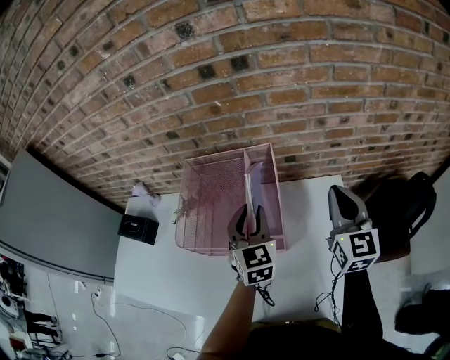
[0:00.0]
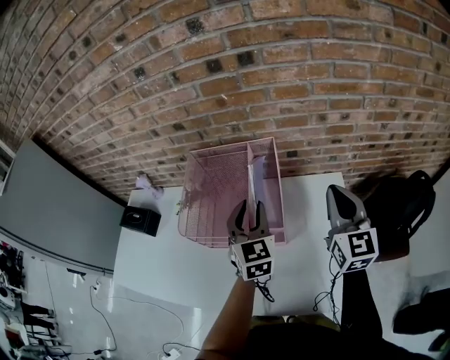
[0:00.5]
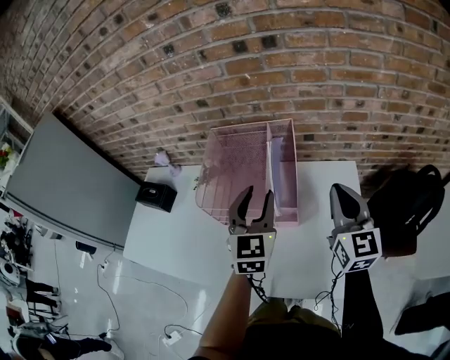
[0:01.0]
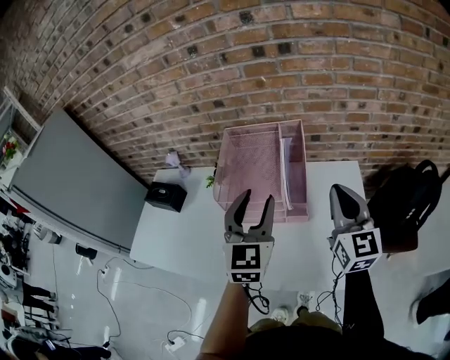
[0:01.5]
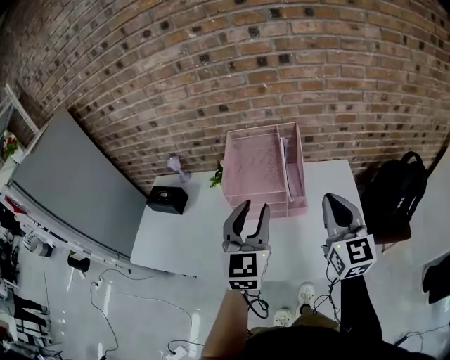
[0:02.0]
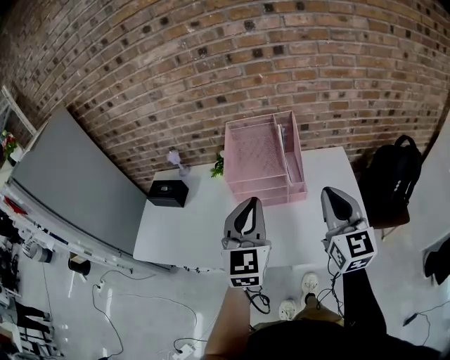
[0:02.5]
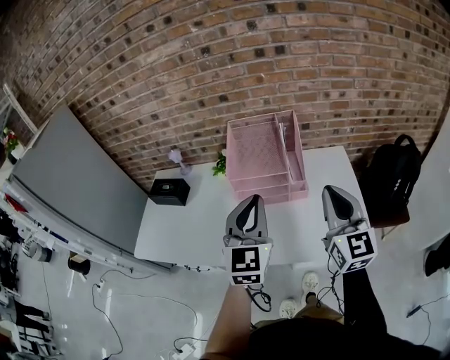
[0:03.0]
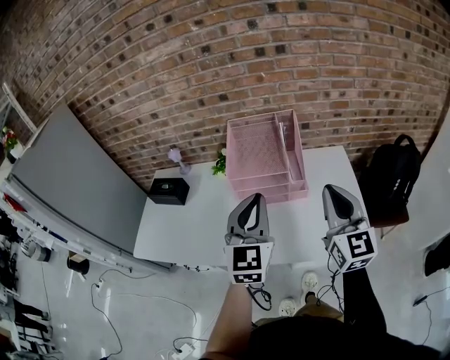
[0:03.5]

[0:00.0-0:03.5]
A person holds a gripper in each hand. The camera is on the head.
0:00.0 to 0:02.0: The right gripper shifts approximately 25 cm backward and to the left, while the left gripper travels backward, to the left and upward by roughly 30 cm.
0:02.0 to 0:03.5: The grippers both shift backward by roughly 5 cm. The left gripper closes.

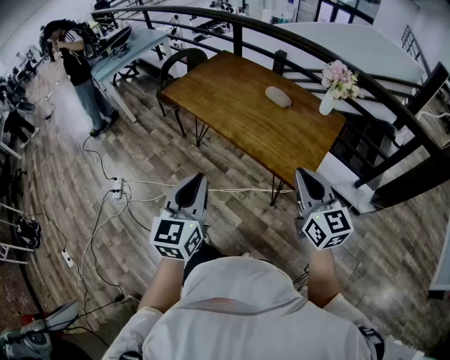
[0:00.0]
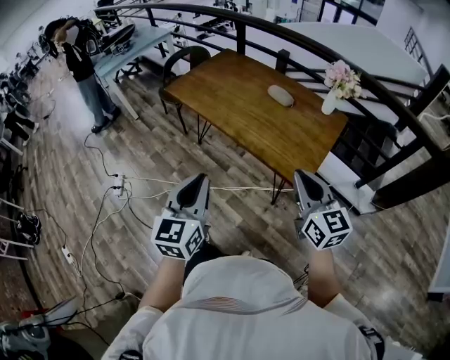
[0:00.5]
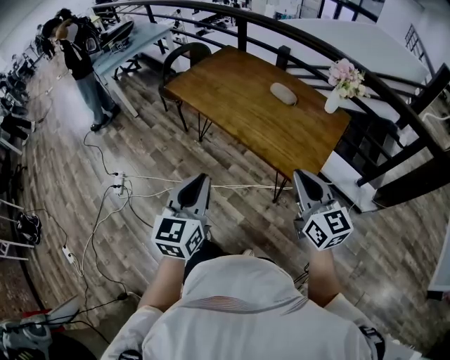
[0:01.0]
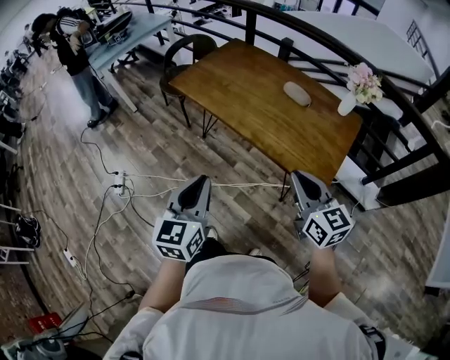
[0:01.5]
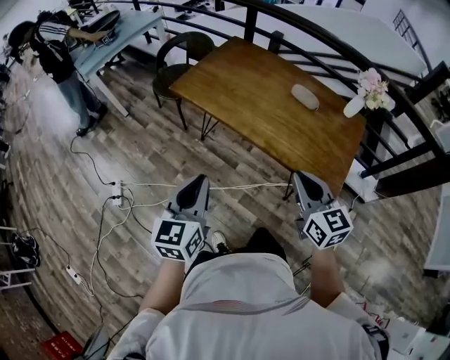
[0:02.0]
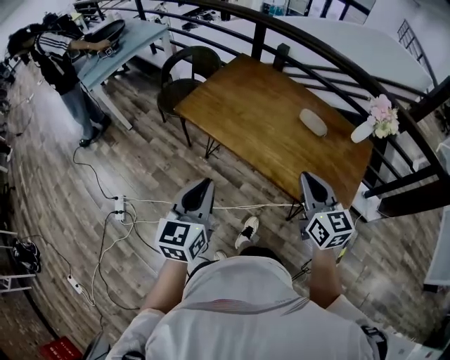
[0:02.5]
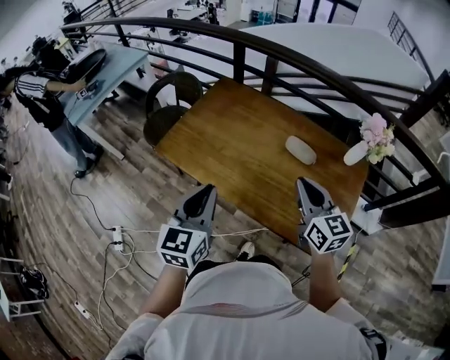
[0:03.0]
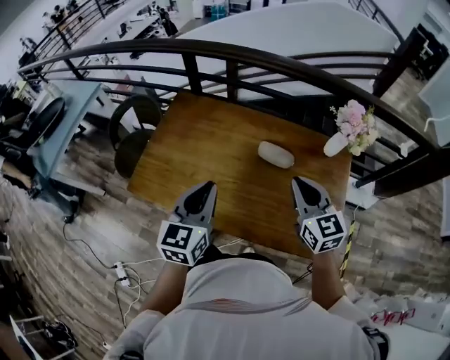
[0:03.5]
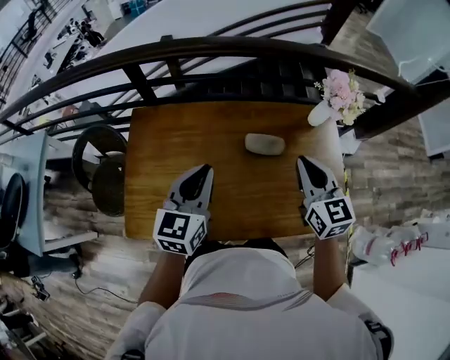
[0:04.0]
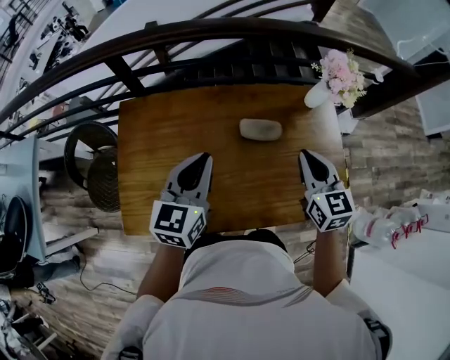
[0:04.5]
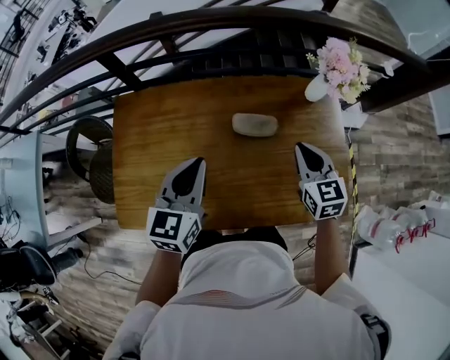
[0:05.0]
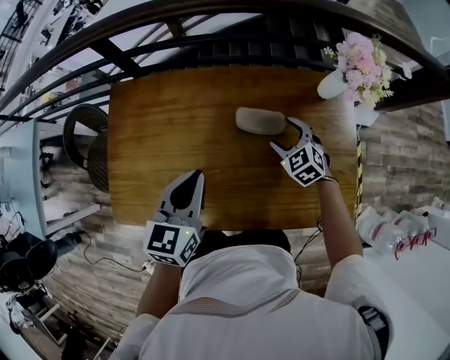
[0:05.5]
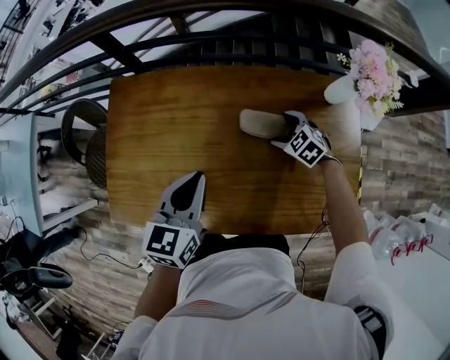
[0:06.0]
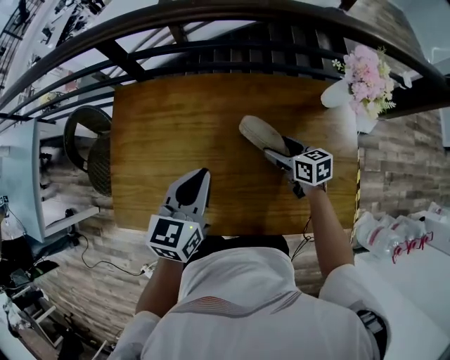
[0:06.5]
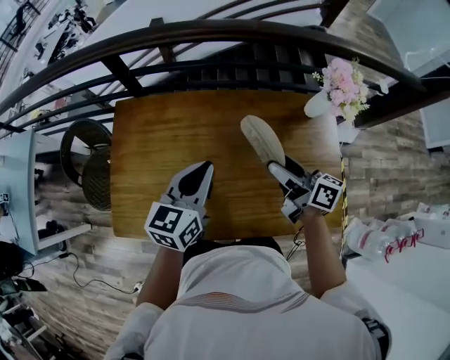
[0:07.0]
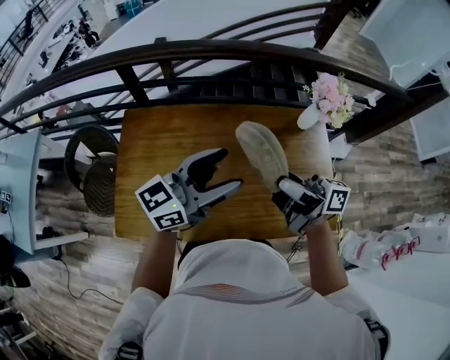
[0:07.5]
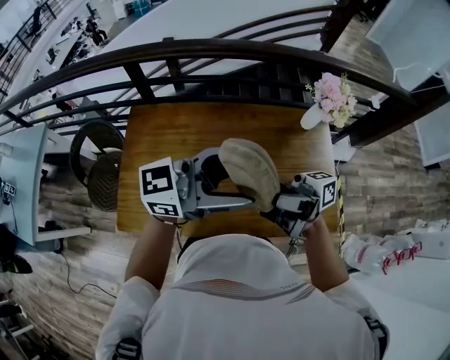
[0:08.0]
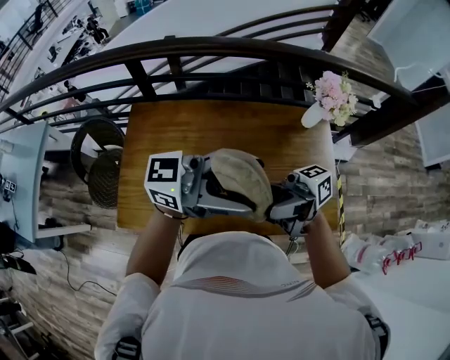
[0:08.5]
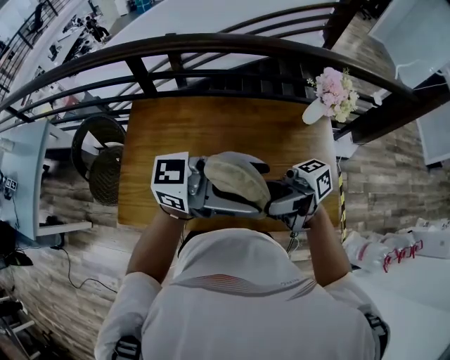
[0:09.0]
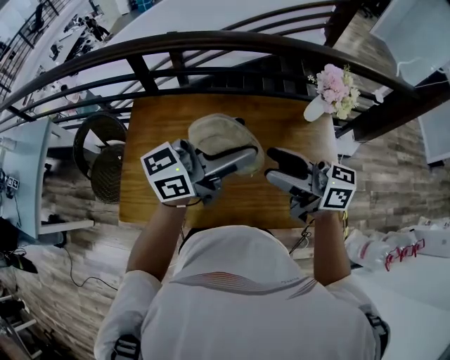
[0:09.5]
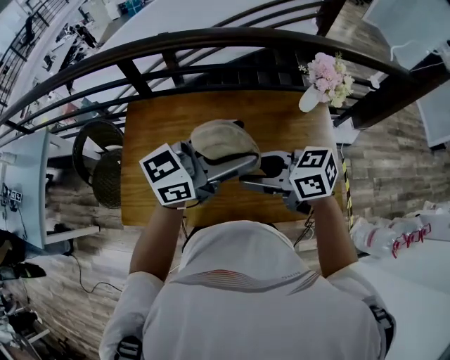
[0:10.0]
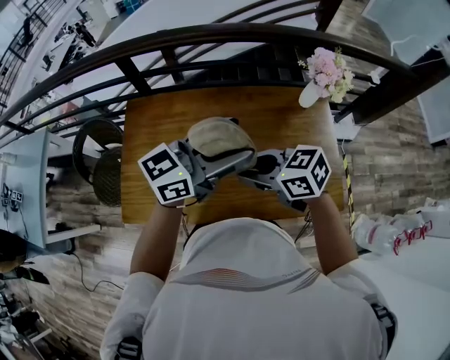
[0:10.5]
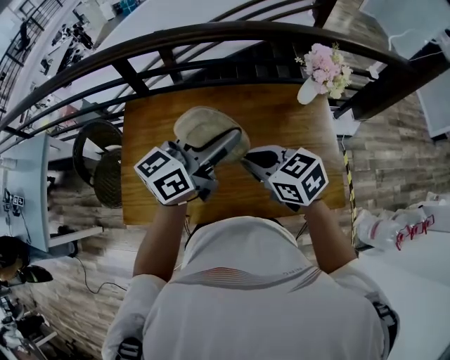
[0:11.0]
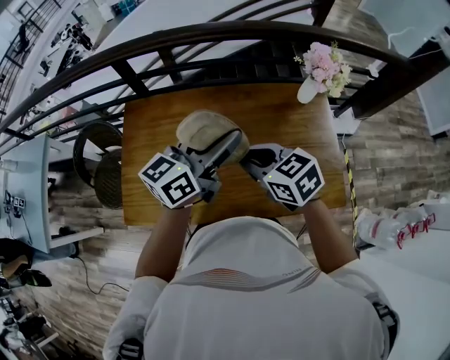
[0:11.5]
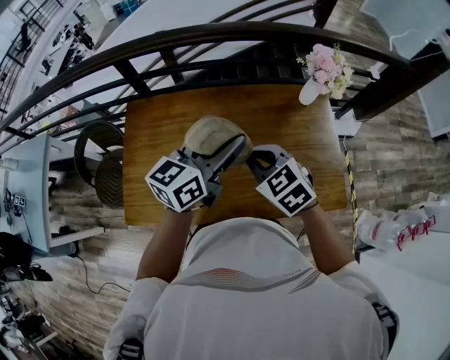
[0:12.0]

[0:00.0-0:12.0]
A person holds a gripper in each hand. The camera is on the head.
0:00.0 to 0:02.0: The grippers both shift to the left and forward by roughly 20 cm.
0:02.0 to 0:04.0: The two grippers travel together, some 50 cm. The left gripper swivels some 40 degrees; the right gripper changes its angle by roughly 40 degrees.
0:04.0 to 0:06.0: The left gripper goes some 10 cm downward. Meanwhile the right gripper travels downward by some 30 cm, tips its fingers downward by roughly 40 degrees, and opens its fingers.
0:06.0 to 0:08.0: The right gripper heads upward, covering about 40 cm, and points its fingers roughly 90 degrees further upward. The left gripper moves upward, approximately 20 cm, tilts its fingers some 40 degrees upward, and opens its fingers.
0:08.0 to 0:10.0: The left gripper changes place by some 5 cm. Meanwhile the right gripper travels downward by approximately 10 cm, and points its fingers about 50 degrees further downward.
0:10.0 to 0:12.0: The right gripper ends up approximately 5 cm from where it was, rotates some 40 degrees, and closes. Meanwhile the left gripper goes roughly 5 cm downward, and changes its angle by some 20 degrees.

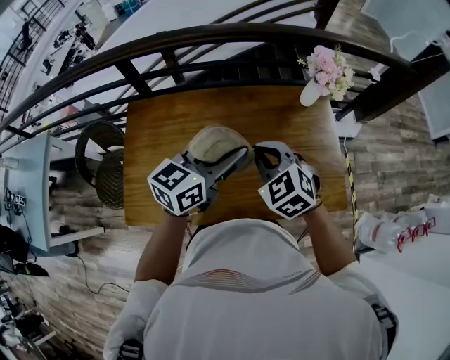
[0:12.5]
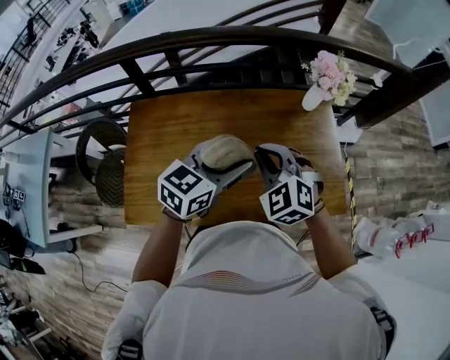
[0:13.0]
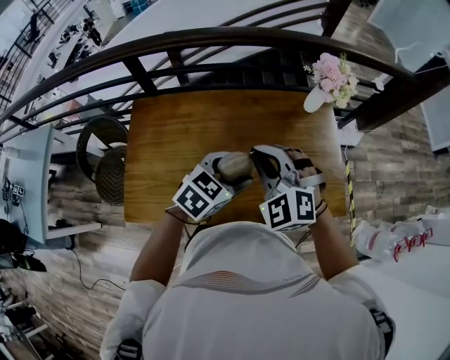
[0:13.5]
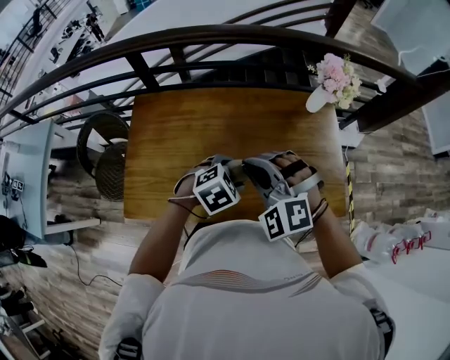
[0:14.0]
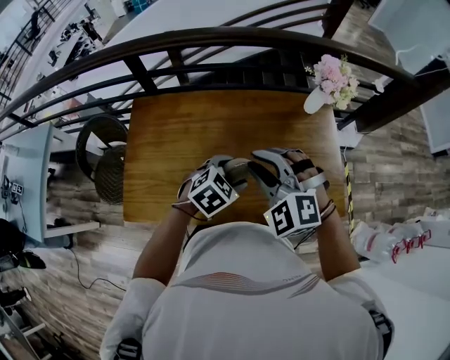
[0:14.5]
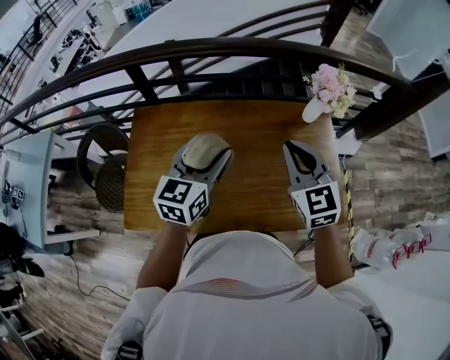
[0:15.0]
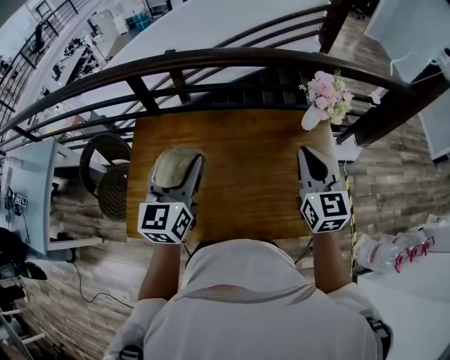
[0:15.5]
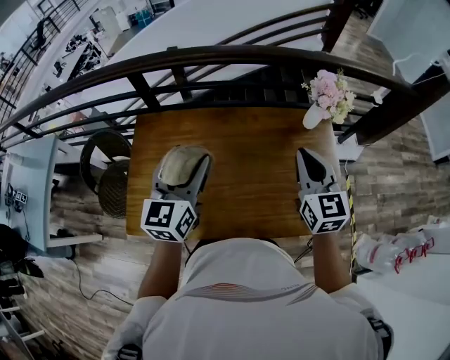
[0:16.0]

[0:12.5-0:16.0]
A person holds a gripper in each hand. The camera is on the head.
0:12.5 to 0:14.5: The left gripper shifts roughly 15 cm downward, and points its fingers some 40 degrees further downward. The right gripper shifts by about 5 cm, and swivels approximately 30 degrees.
0:14.5 to 0:16.0: The right gripper shifts roughly 15 cm to the right and forward, and rotates around the line of its fingers by roughly 60 degrees, clockwise from behind; the left gripper moves upward and to the left, about 20 cm, and tips its fingers upward by approximately 40 degrees.

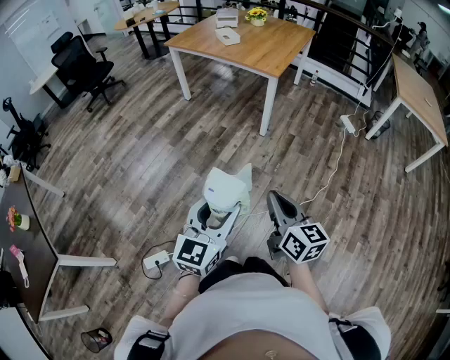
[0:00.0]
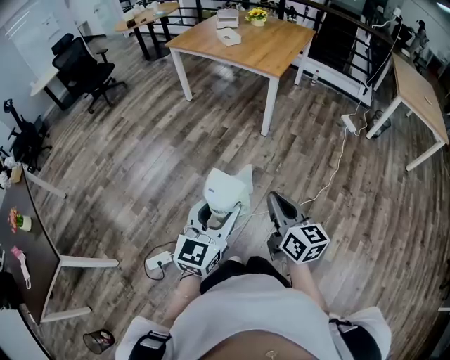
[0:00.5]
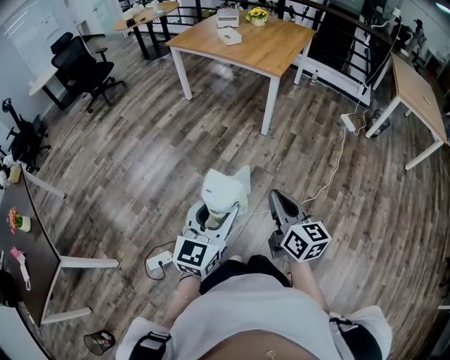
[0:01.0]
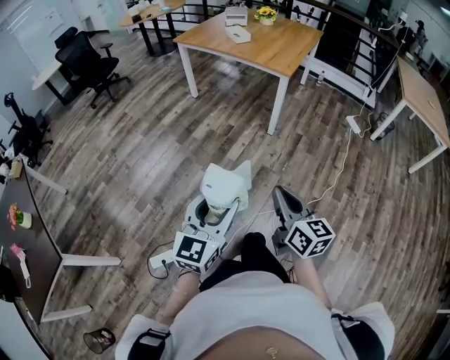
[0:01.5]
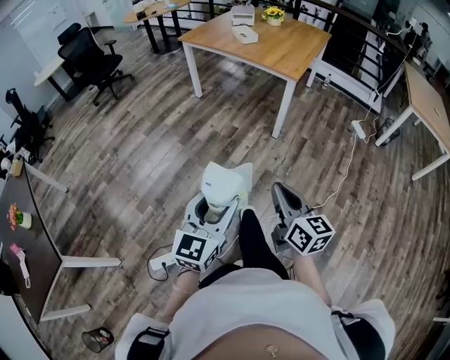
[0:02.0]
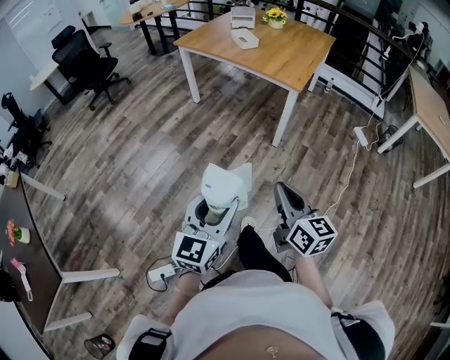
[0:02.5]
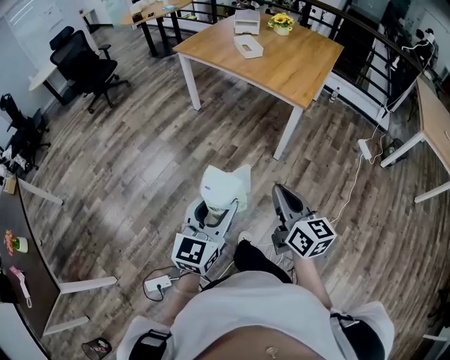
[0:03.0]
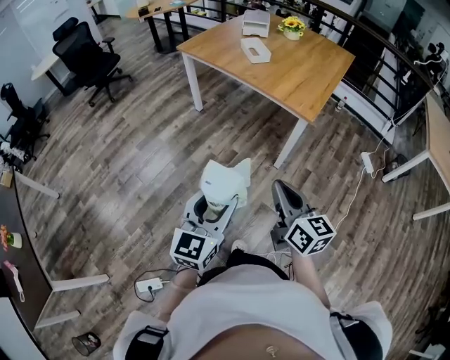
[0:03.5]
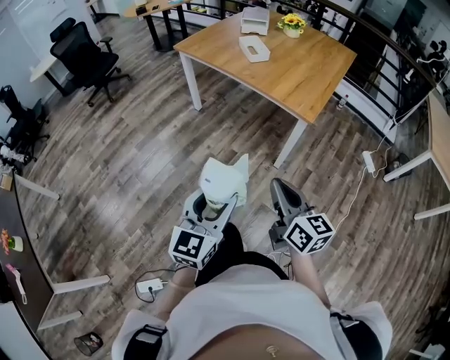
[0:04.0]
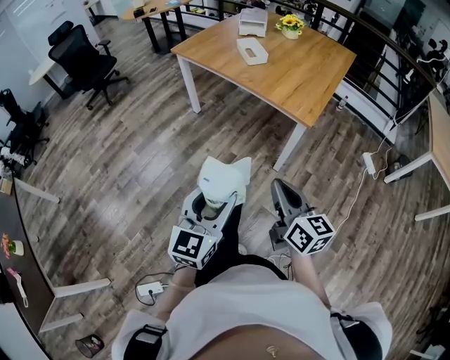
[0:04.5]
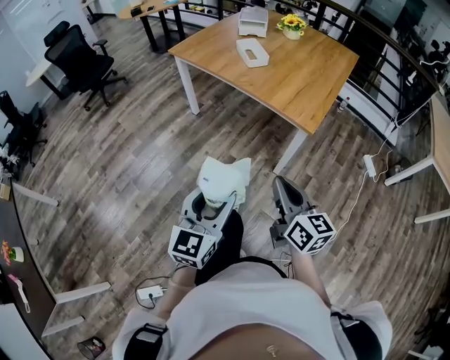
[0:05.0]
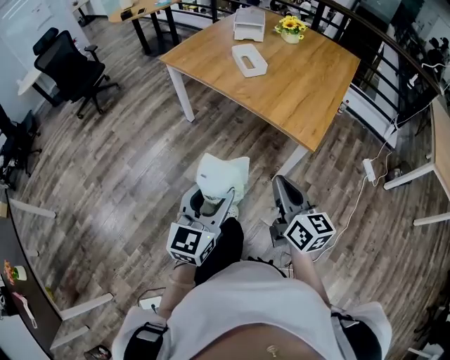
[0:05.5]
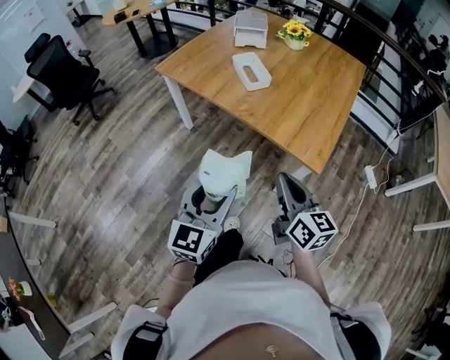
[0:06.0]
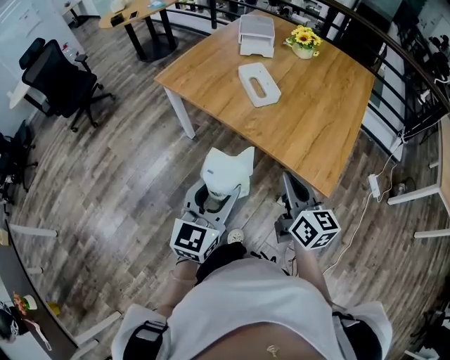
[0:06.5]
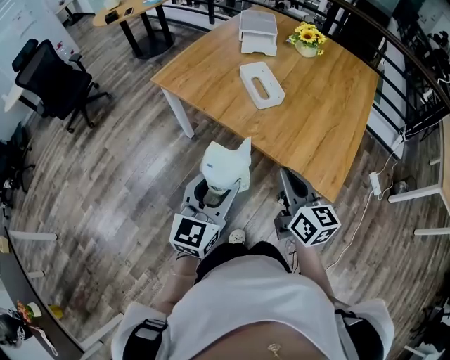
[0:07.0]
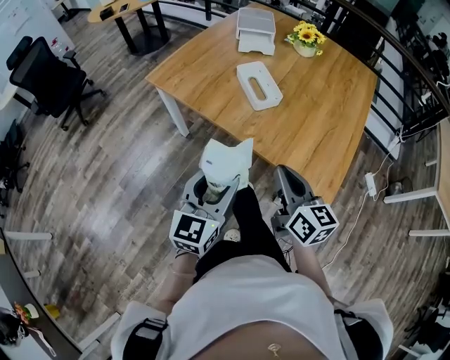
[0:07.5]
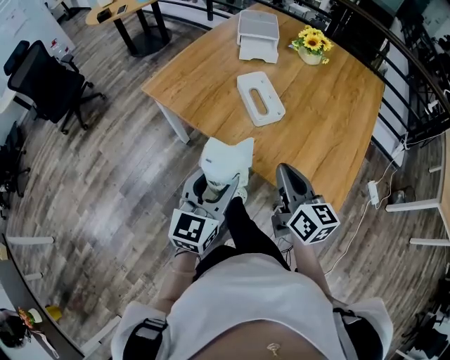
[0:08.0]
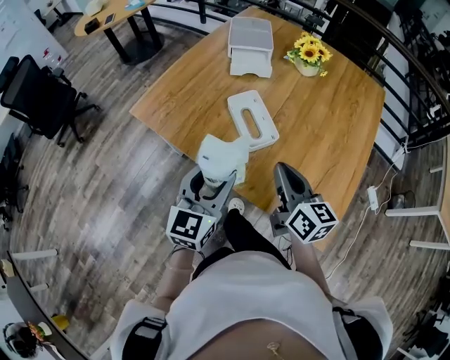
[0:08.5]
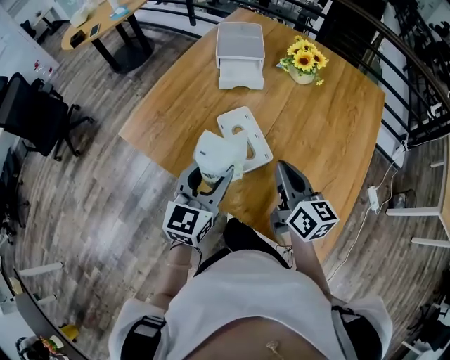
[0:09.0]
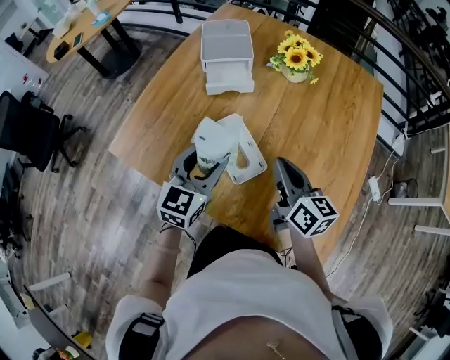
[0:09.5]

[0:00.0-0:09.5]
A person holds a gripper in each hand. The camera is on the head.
0:00.0 to 0:02.0: The left gripper heads to the left, covering roughly 10 cm. Meanwhile the right gripper is displaced to the left and forward by roughly 10 cm.
0:02.0 to 0:04.0: Both grippers travel together forward, roughly 30 cm.
0:04.0 to 0:05.5: Both grippers move forward, about 15 cm.
0:05.5 to 0:07.5: Both grippers move forward, some 30 cm.
0:07.5 to 0:09.5: The grippers both shift forward by roughly 35 cm.
